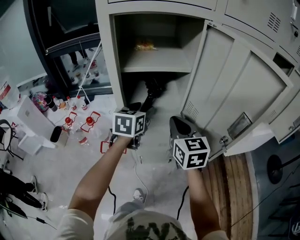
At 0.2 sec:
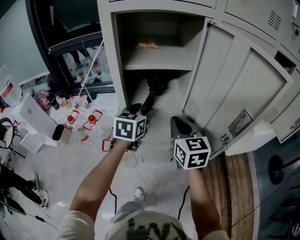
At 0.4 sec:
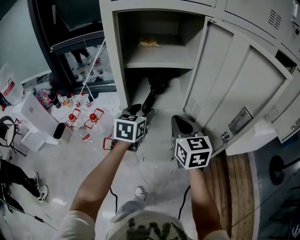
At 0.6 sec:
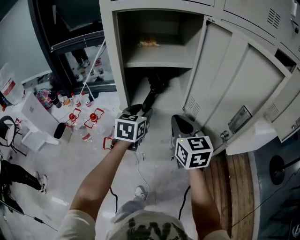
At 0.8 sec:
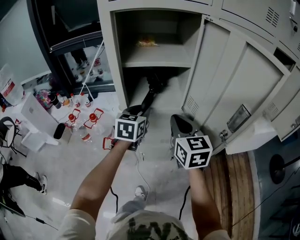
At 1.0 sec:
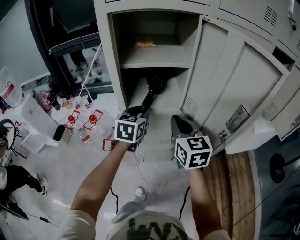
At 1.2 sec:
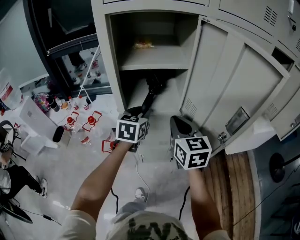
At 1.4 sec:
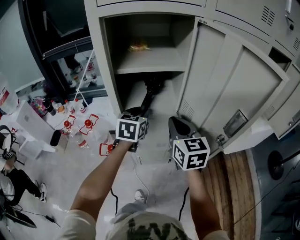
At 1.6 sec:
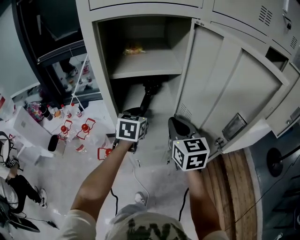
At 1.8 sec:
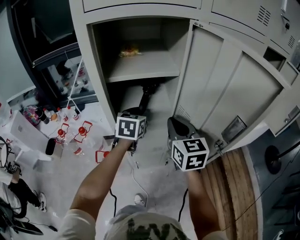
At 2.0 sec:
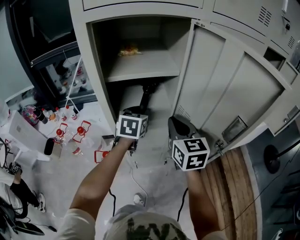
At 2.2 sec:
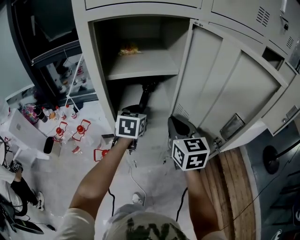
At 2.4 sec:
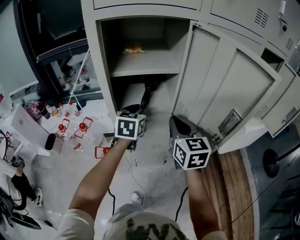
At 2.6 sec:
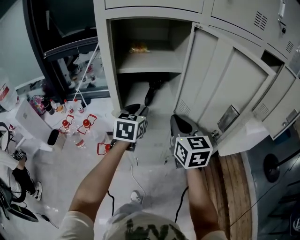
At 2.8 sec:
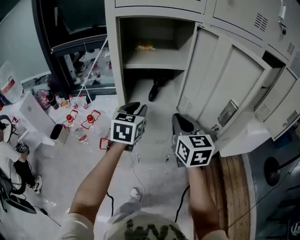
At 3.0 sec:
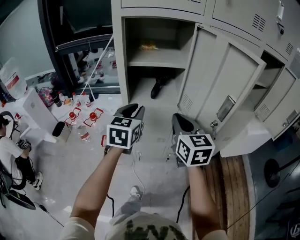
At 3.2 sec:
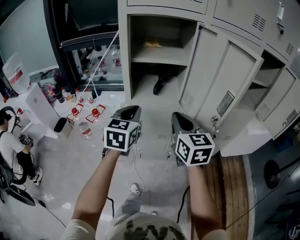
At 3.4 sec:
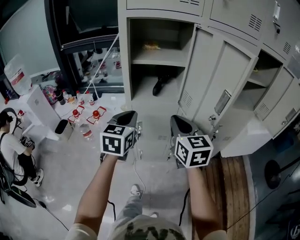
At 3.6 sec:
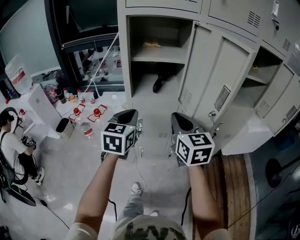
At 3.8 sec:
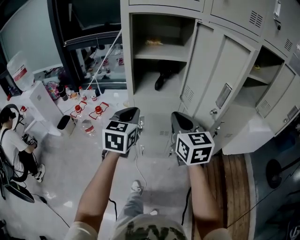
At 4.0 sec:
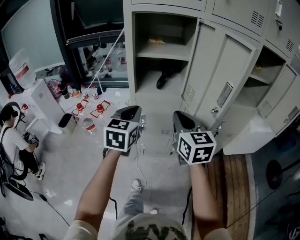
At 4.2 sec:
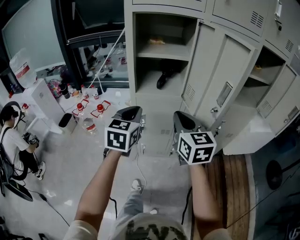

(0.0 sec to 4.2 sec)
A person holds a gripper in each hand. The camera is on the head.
0.0 sec - 1.4 sec: The left gripper closes.
1.4 sec - 2.8 sec: The left gripper shifts about 10 cm backward and upward. Meanwhile the right gripper moves roughly 5 cm.
2.8 sec - 4.2 sec: Both grippers travel together backward, about 10 cm. The left gripper closes its fingers.

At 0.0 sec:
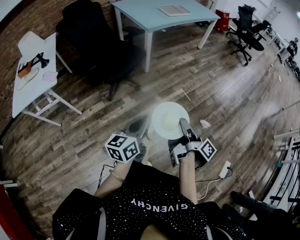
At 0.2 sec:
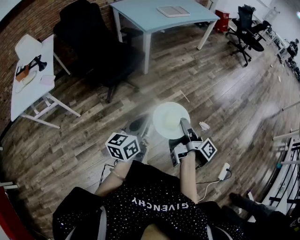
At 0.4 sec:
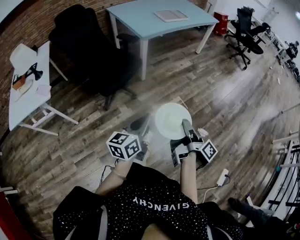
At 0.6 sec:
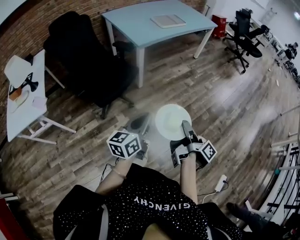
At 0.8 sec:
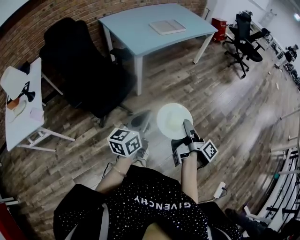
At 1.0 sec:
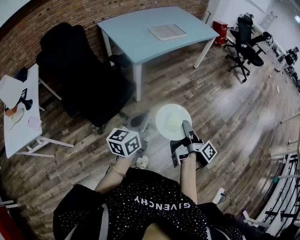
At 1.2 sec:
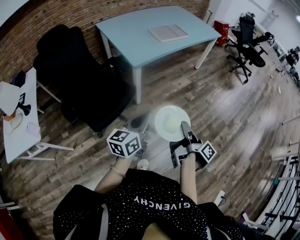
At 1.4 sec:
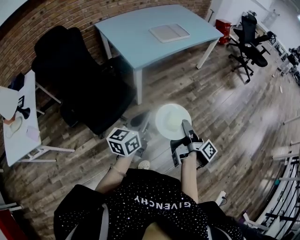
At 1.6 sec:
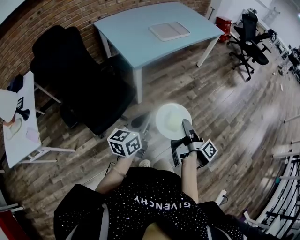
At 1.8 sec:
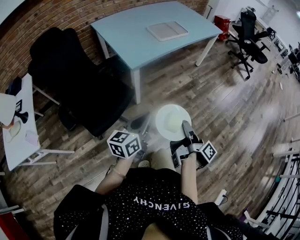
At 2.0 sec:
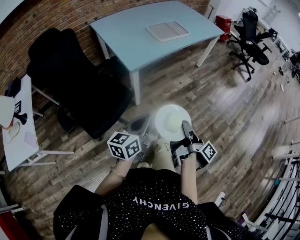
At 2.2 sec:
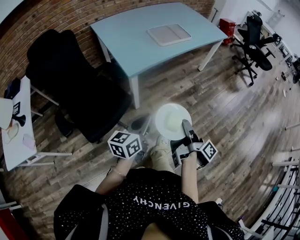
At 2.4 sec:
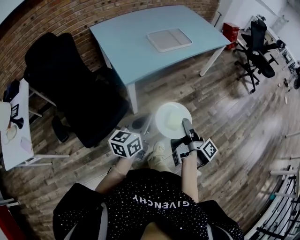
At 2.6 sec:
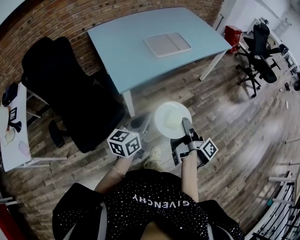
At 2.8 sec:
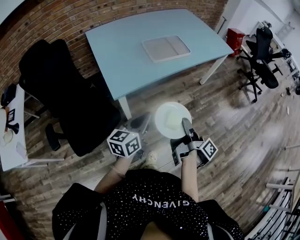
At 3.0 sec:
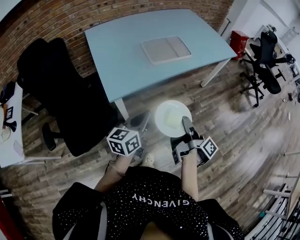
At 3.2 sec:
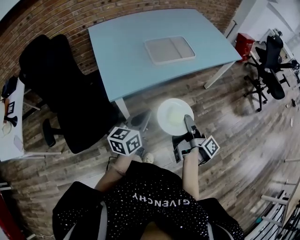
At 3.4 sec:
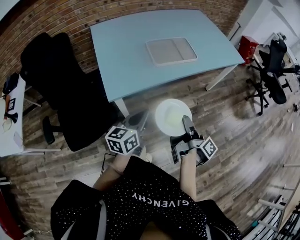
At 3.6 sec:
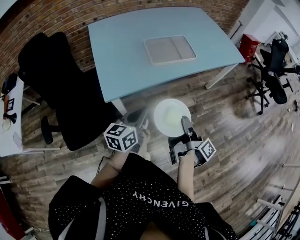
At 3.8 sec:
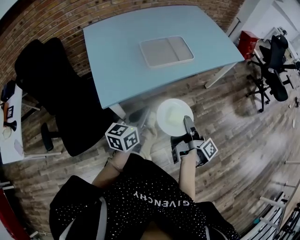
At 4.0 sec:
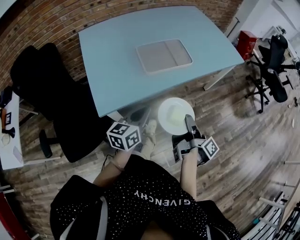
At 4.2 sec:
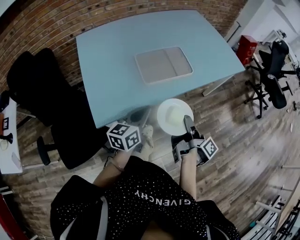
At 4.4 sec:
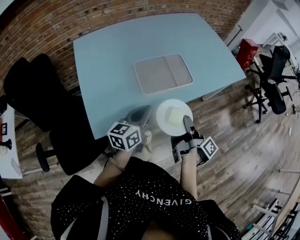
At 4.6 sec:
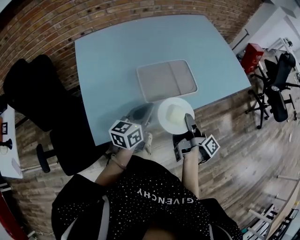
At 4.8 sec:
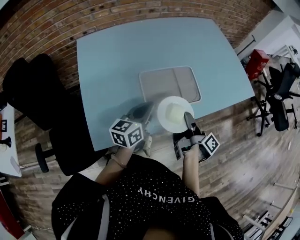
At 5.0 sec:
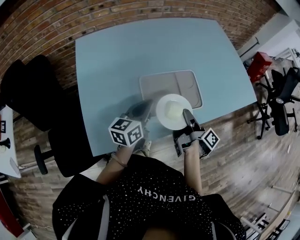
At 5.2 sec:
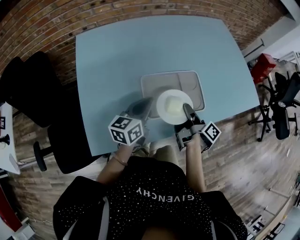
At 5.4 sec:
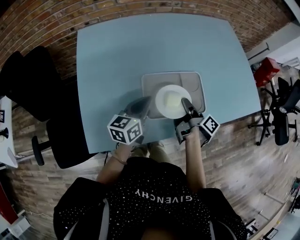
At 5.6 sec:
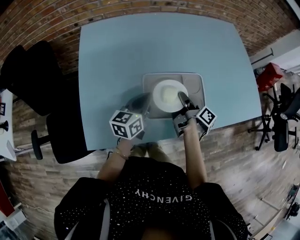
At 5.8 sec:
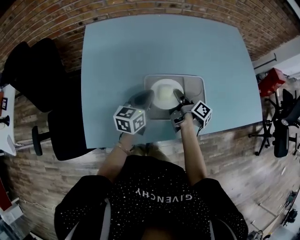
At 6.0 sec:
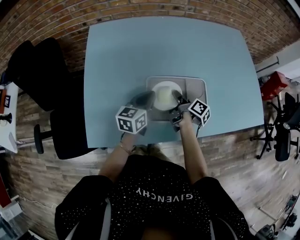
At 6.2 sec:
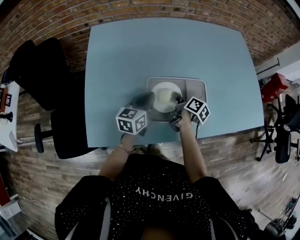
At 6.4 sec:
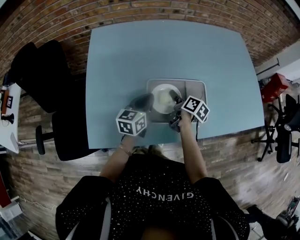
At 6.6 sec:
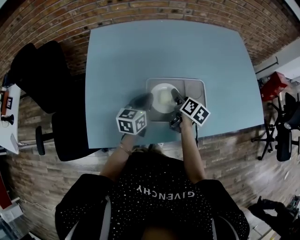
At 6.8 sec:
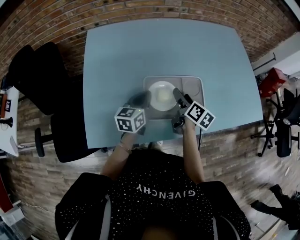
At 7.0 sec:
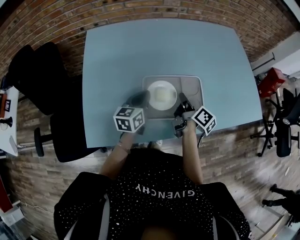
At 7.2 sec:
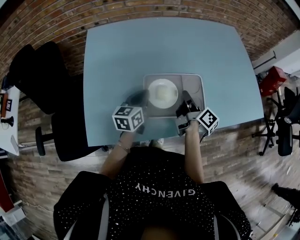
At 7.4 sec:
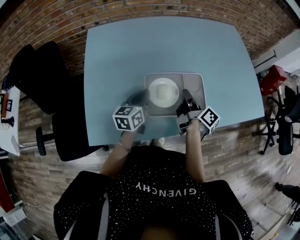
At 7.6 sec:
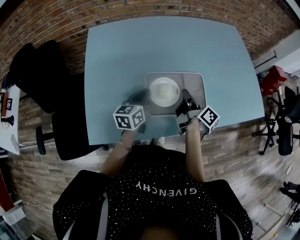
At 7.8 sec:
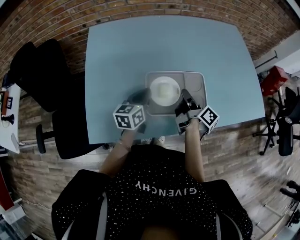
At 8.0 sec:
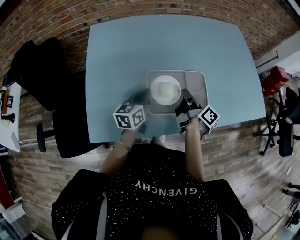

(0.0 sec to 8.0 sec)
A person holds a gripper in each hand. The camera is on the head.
0.0 sec - 1.6 sec: The left gripper shifts by about 50 cm.
1.6 sec - 3.2 sec: The left gripper ends up some 35 cm from where it was.
3.2 sec - 4.8 sec: The left gripper moves about 35 cm.
4.8 sec - 6.4 sec: The left gripper changes place by some 15 cm.

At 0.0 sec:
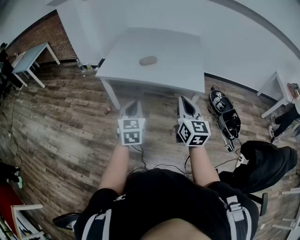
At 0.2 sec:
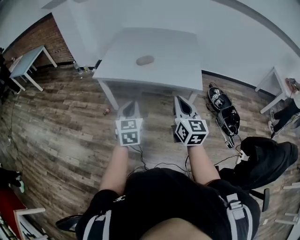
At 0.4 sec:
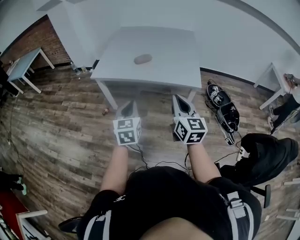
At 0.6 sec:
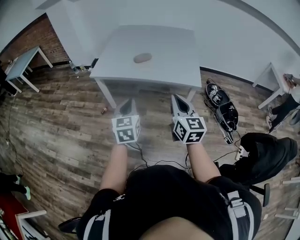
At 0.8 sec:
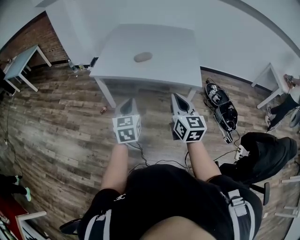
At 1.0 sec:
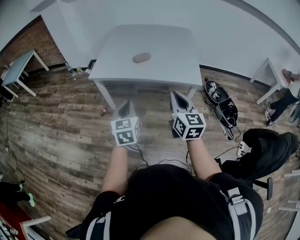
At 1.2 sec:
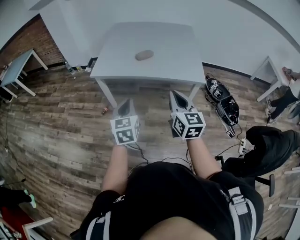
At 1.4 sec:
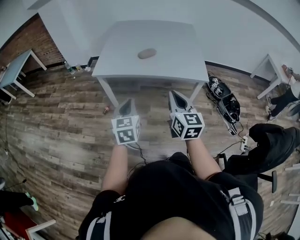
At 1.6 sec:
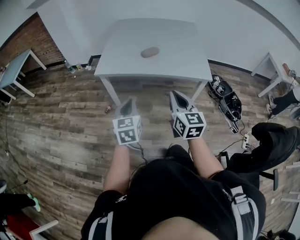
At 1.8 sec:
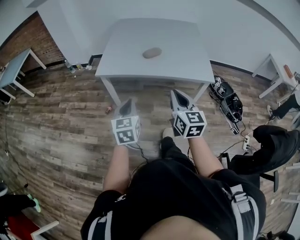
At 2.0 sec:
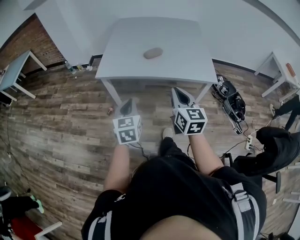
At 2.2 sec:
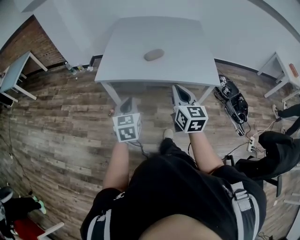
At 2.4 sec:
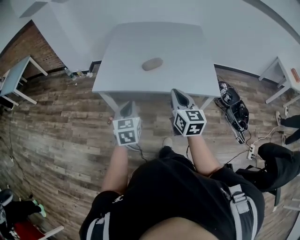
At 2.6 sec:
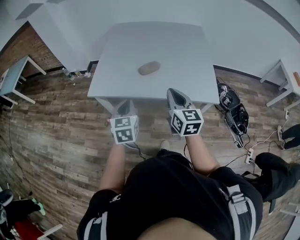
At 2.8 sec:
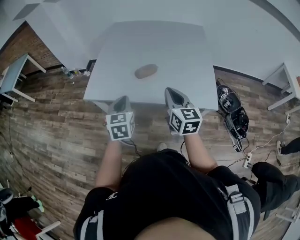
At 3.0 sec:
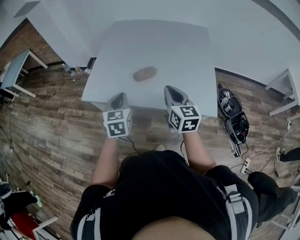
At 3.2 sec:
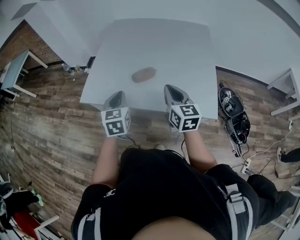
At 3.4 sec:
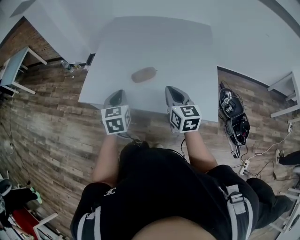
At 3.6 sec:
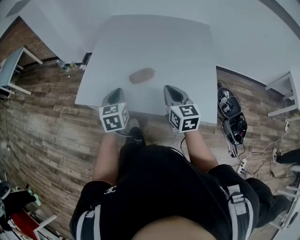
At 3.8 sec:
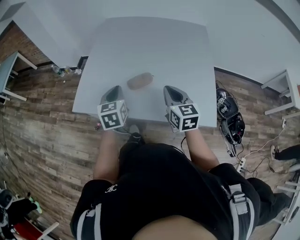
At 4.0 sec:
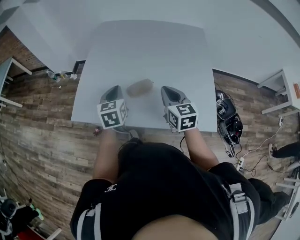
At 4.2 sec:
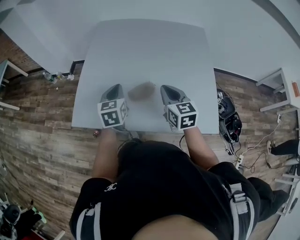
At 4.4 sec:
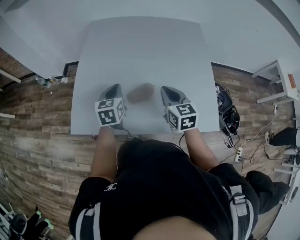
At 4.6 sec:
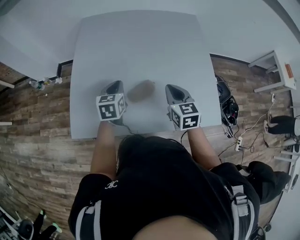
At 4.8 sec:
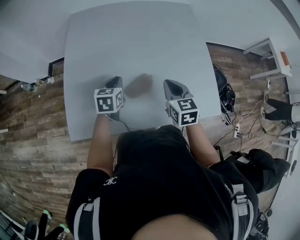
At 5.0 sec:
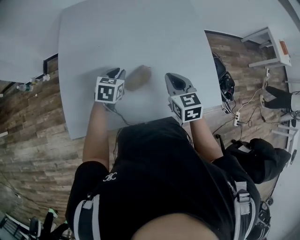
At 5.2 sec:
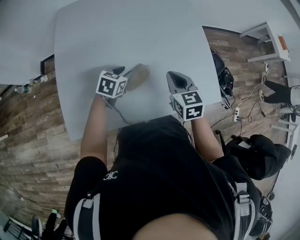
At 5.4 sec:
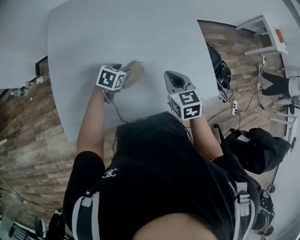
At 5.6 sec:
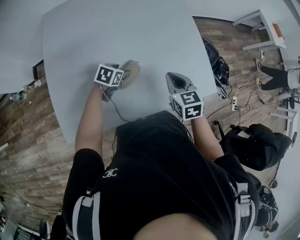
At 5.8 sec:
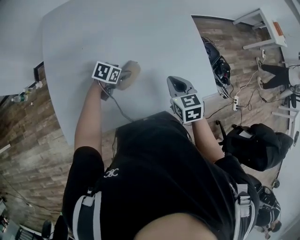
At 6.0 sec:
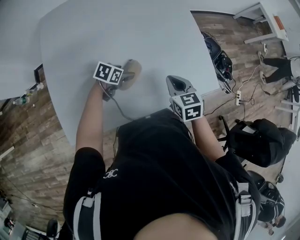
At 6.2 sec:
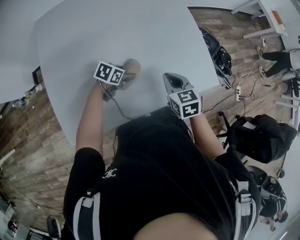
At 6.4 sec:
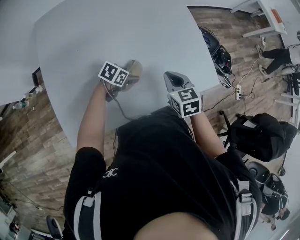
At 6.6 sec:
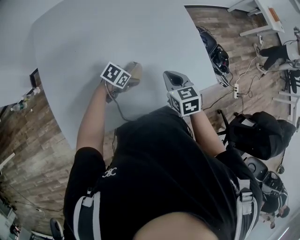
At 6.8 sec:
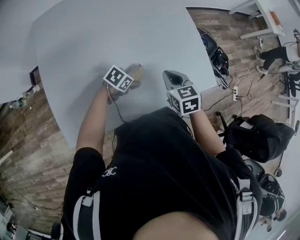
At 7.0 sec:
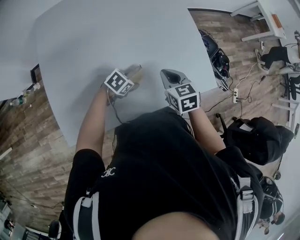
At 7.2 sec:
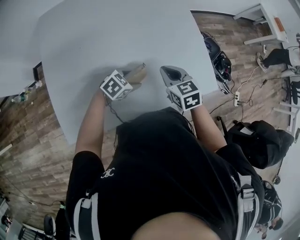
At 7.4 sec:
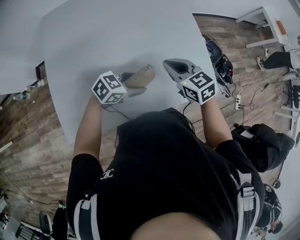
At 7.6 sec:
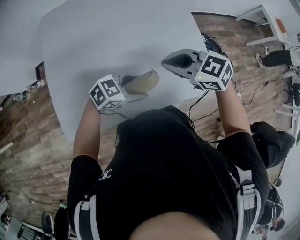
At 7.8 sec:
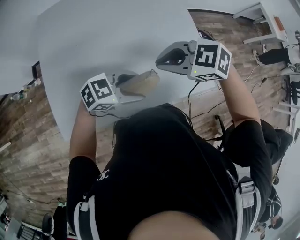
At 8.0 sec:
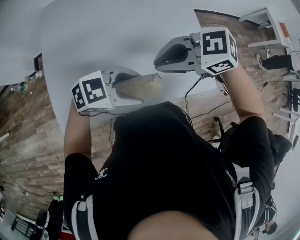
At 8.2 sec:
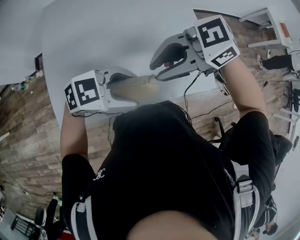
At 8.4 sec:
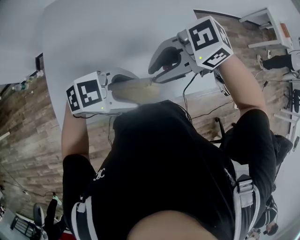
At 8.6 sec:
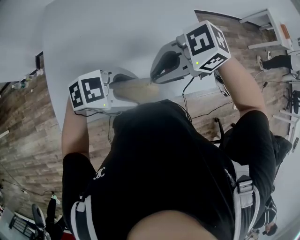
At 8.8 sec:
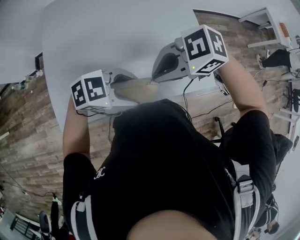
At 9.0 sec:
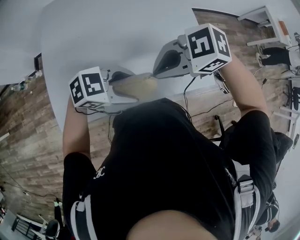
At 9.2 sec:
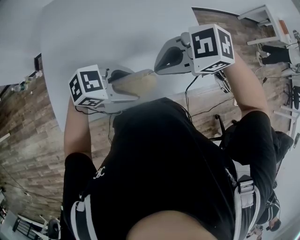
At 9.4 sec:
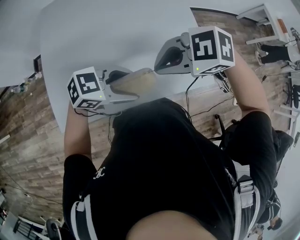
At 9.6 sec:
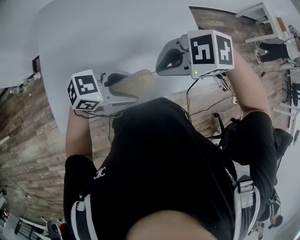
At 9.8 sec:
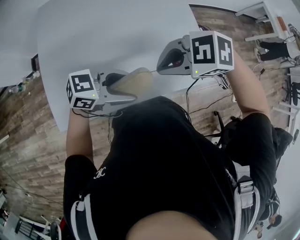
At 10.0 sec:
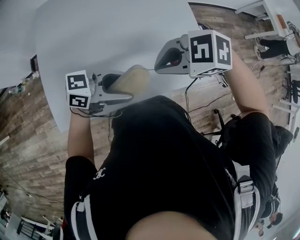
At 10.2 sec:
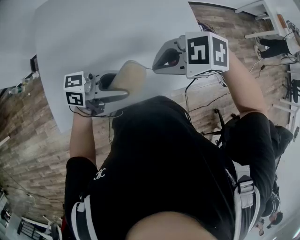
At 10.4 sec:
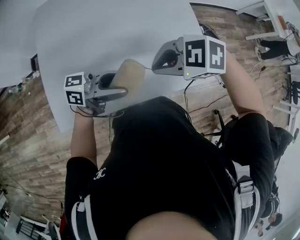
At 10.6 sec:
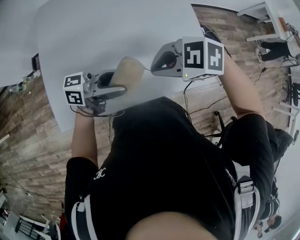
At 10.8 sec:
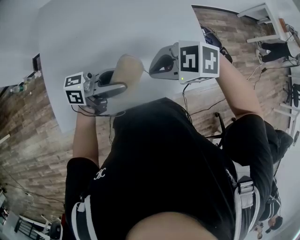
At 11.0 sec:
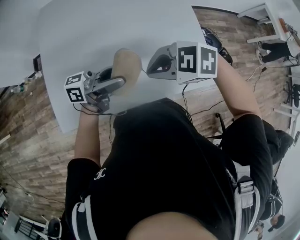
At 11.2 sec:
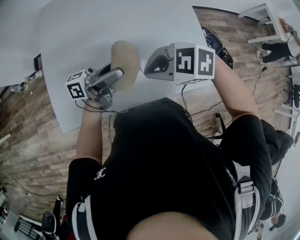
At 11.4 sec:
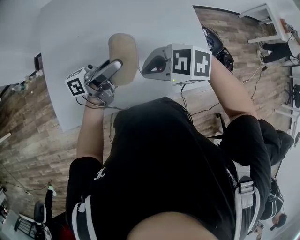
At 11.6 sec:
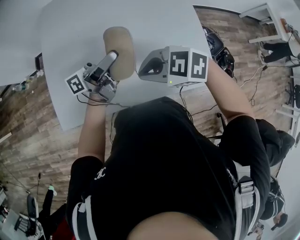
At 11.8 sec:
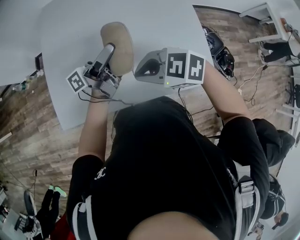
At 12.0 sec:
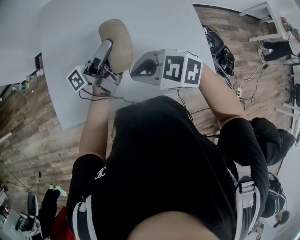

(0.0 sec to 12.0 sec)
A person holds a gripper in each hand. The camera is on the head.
0.0 sec - 1.6 sec: Both grippers move to the left, roughly 15 cm.
1.6 sec - 3.0 sec: The grippers both shift forward by approximately 35 cm.
3.0 sec - 4.4 sec: The grippers both shift forward by some 30 cm.
4.4 sec - 6.0 sec: The right gripper travels downward by roughly 10 cm, and turns by about 20 degrees, while the left gripper moves downward, about 20 cm, changes its angle by roughly 60 degrees, and opens up.
6.0 sec - 7.6 sec: Both grippers move upward, some 15 cm. The right gripper rotates approximately 50 degrees, while the left gripper rotates roughly 40 degrees.
7.6 sec - 9.0 sec: The right gripper changes place by about 10 cm, and rotates about 40 degrees. The left gripper goes about 5 cm upward.
9.0 sec - 10.4 sec: The left gripper tips its fingers upward by about 40 degrees.
10.4 sec - 12.0 sec: The right gripper changes place by some 10 cm. The left gripper changes place by roughly 15 cm, and changes its angle by about 50 degrees.
